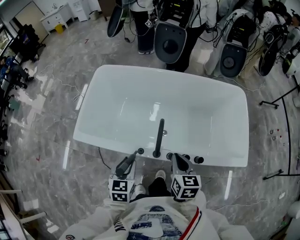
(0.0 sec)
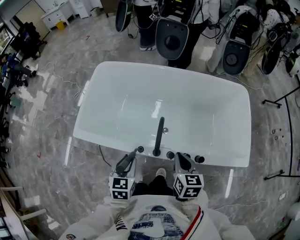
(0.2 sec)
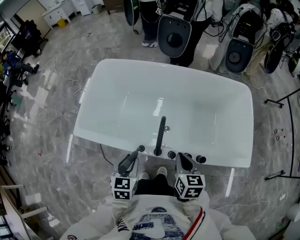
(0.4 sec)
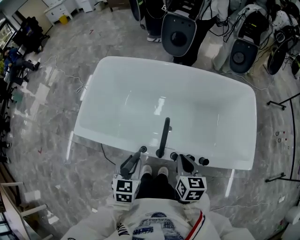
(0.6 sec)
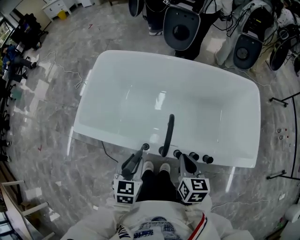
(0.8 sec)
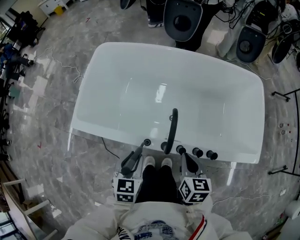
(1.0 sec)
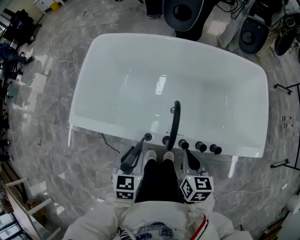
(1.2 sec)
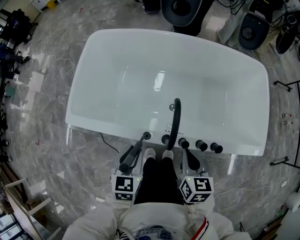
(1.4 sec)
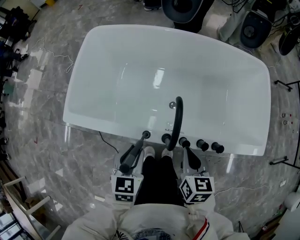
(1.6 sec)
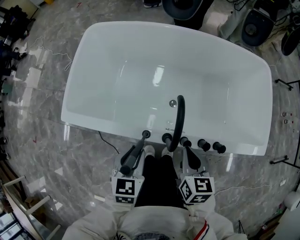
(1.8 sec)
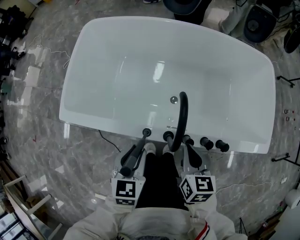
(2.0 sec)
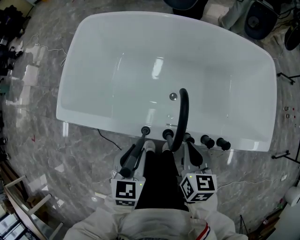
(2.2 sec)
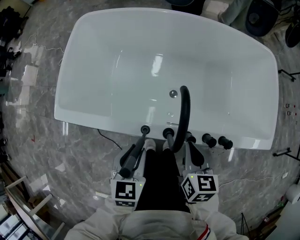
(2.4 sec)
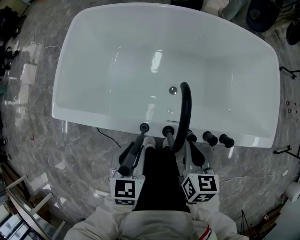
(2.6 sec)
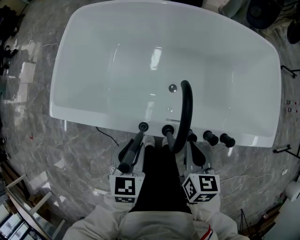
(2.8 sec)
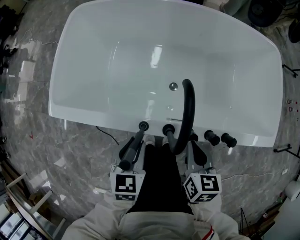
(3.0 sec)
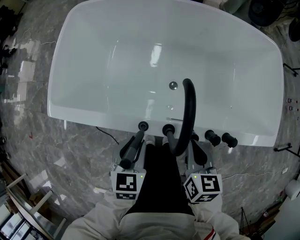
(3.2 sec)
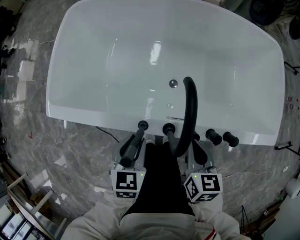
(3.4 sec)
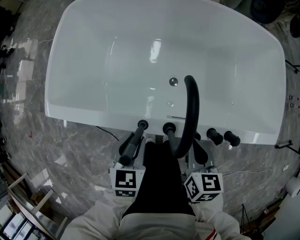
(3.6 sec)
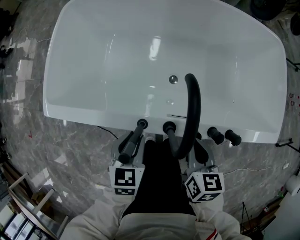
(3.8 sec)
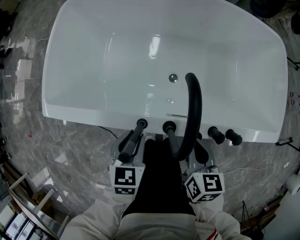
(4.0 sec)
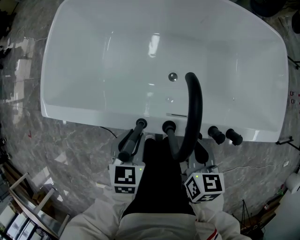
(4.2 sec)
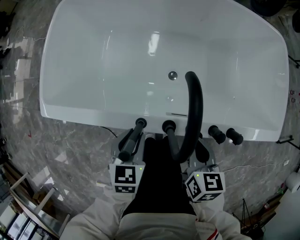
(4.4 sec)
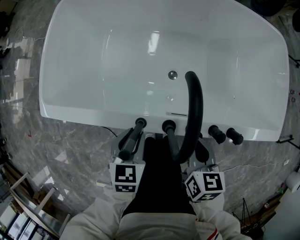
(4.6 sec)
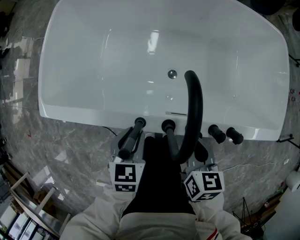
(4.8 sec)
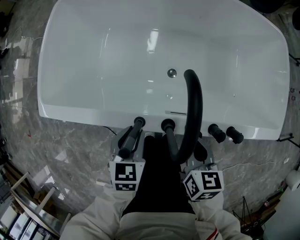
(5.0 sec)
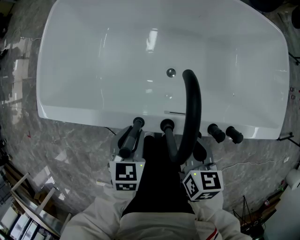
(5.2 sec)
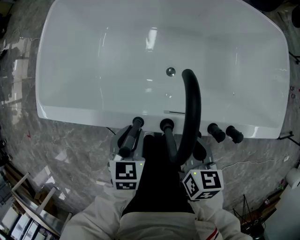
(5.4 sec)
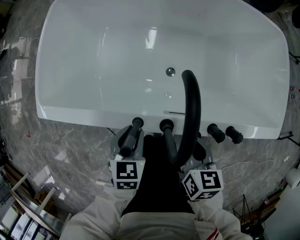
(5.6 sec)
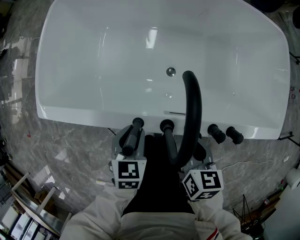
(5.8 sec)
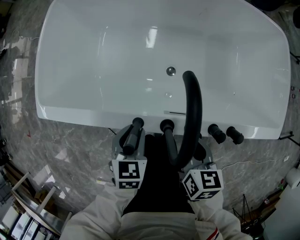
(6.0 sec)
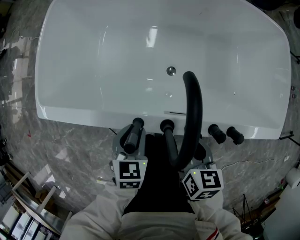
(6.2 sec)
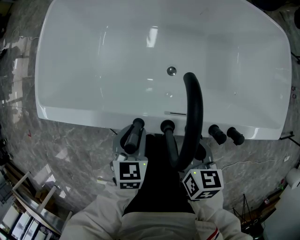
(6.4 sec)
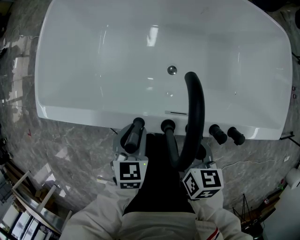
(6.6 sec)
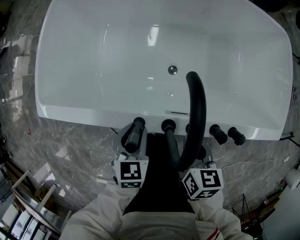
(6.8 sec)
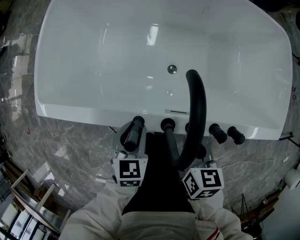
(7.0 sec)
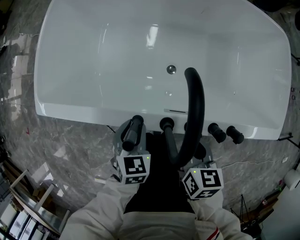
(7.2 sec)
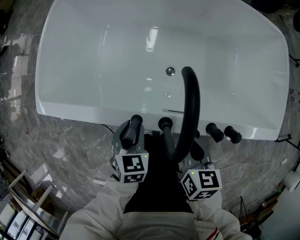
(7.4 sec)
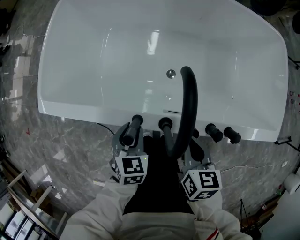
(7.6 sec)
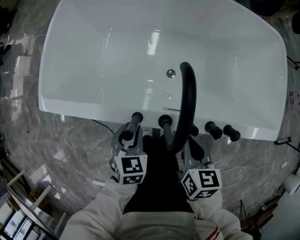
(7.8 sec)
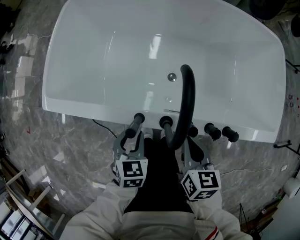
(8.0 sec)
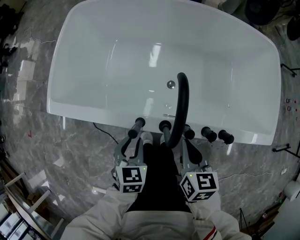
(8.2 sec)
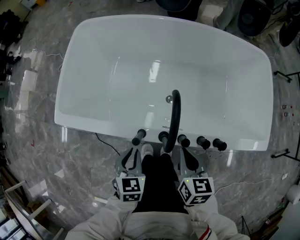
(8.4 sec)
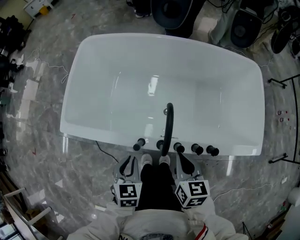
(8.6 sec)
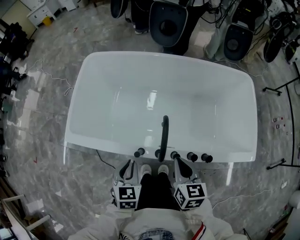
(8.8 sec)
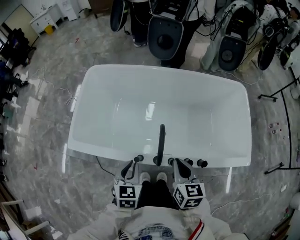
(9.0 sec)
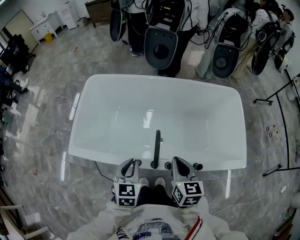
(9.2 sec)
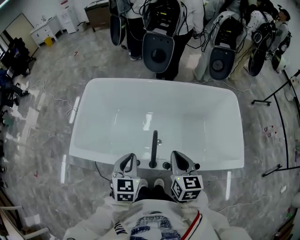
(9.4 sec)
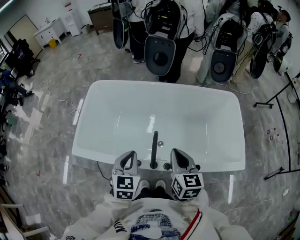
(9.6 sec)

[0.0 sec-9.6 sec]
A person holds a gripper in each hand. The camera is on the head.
0.0 sec to 1.6 sec: Both grippers move downward, about 10 cm.
1.6 sec to 3.2 sec: The two grippers go some 10 cm downward.
3.2 sec to 4.8 sec: The left gripper is displaced downward by approximately 5 cm.
4.8 sec to 8.0 sec: The grippers make only small movements.
8.0 sec to 9.6 sec: Both grippers travel together upward, about 30 cm. The right gripper turns by some 30 degrees. Meanwhile the left gripper rotates about 20 degrees, and closes its fingers.

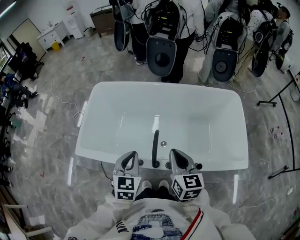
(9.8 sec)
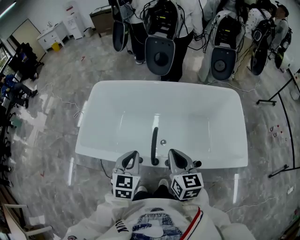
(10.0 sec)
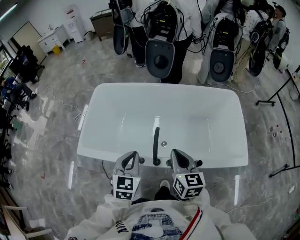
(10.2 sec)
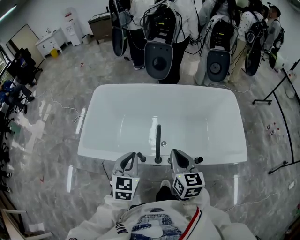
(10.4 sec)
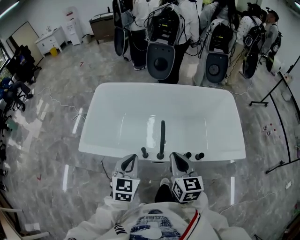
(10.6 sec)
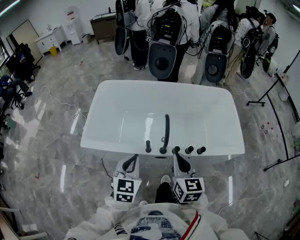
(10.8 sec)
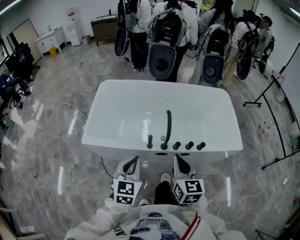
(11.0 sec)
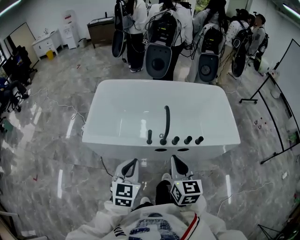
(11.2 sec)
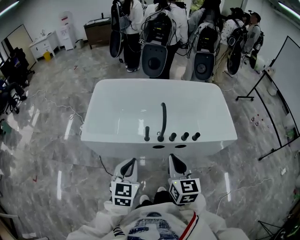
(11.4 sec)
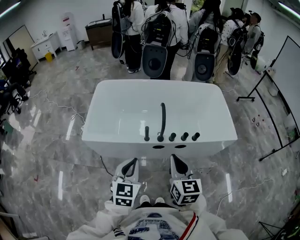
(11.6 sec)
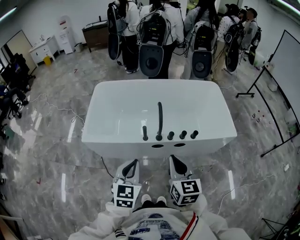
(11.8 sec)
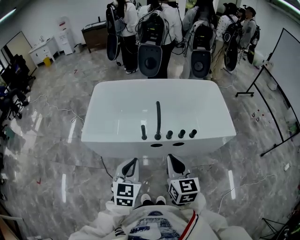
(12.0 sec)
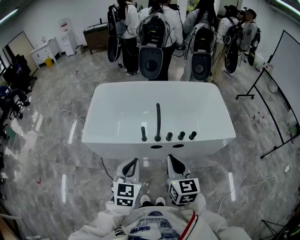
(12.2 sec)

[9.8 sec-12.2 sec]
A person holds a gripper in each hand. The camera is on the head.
9.8 sec to 11.0 sec: The grippers both shift backward and to the left by roughly 20 cm.
11.0 sec to 12.2 sec: The two grippers go approximately 10 cm backward.

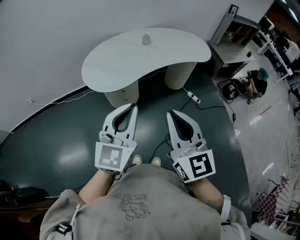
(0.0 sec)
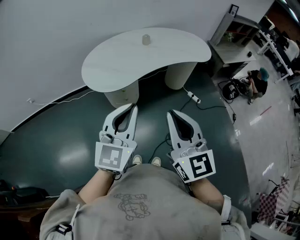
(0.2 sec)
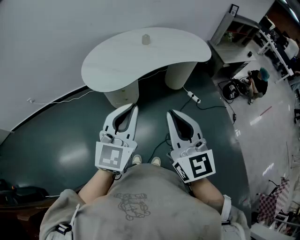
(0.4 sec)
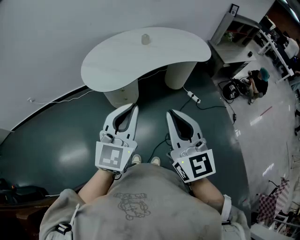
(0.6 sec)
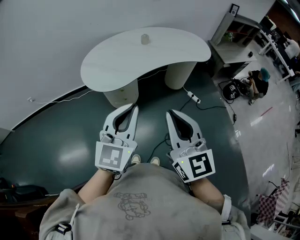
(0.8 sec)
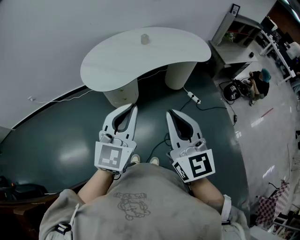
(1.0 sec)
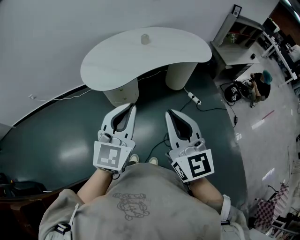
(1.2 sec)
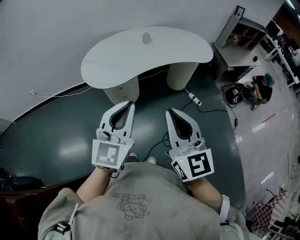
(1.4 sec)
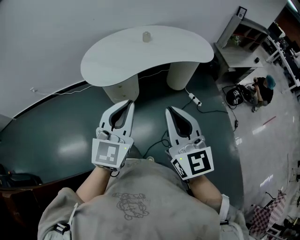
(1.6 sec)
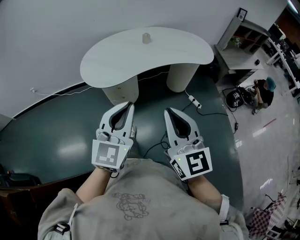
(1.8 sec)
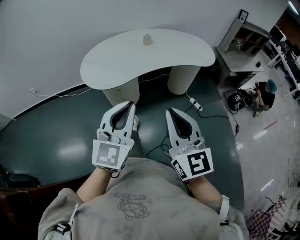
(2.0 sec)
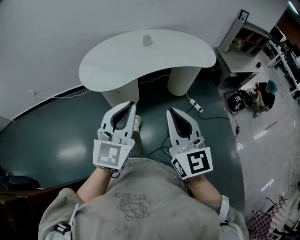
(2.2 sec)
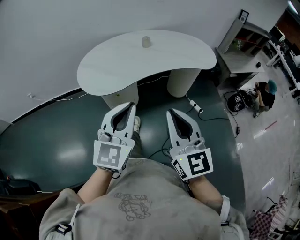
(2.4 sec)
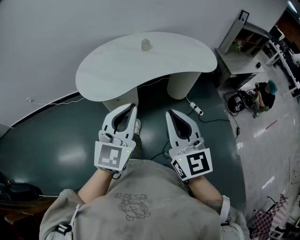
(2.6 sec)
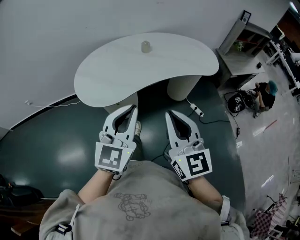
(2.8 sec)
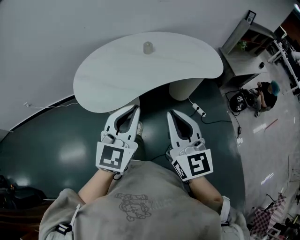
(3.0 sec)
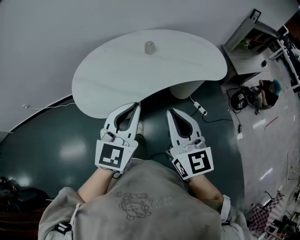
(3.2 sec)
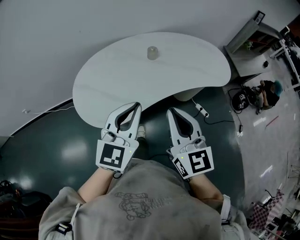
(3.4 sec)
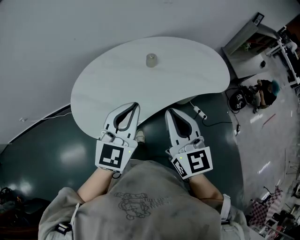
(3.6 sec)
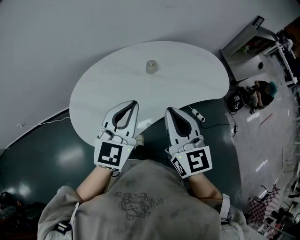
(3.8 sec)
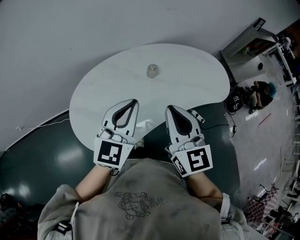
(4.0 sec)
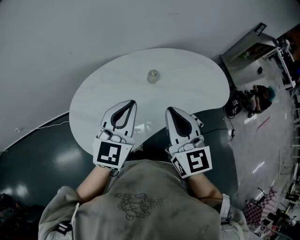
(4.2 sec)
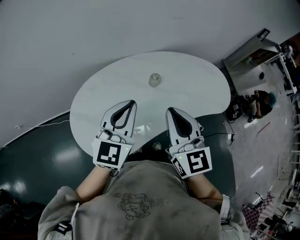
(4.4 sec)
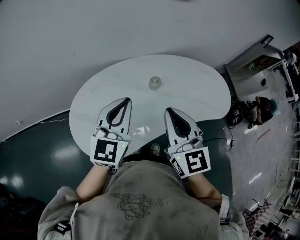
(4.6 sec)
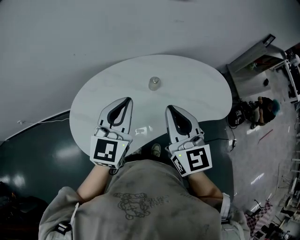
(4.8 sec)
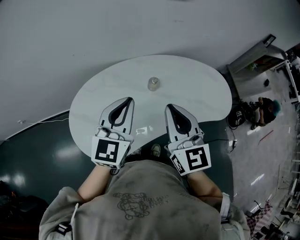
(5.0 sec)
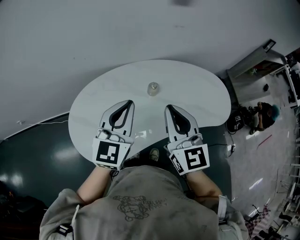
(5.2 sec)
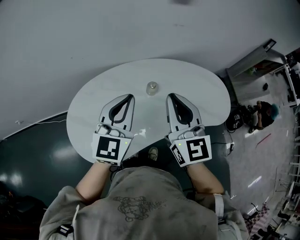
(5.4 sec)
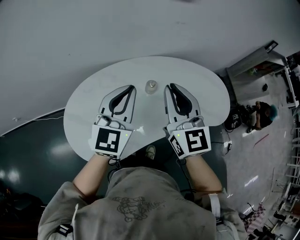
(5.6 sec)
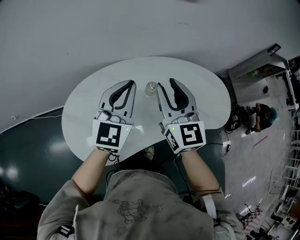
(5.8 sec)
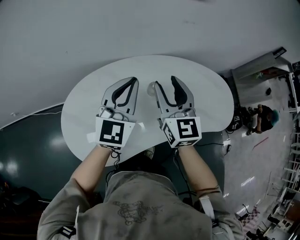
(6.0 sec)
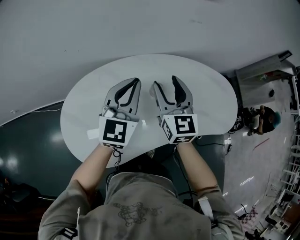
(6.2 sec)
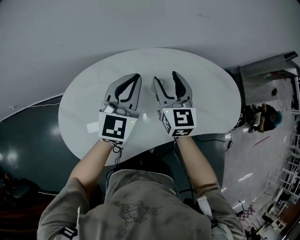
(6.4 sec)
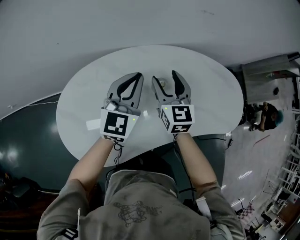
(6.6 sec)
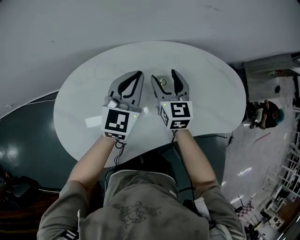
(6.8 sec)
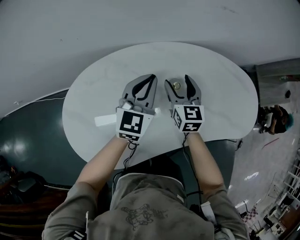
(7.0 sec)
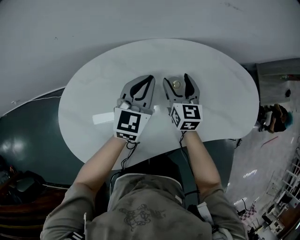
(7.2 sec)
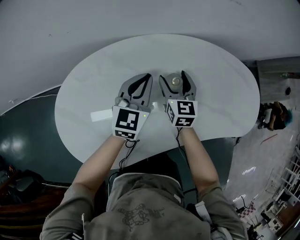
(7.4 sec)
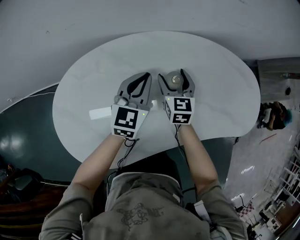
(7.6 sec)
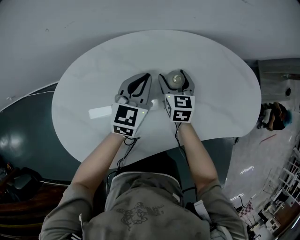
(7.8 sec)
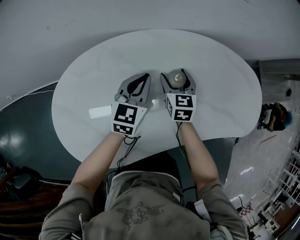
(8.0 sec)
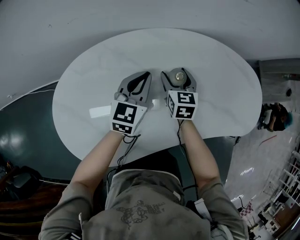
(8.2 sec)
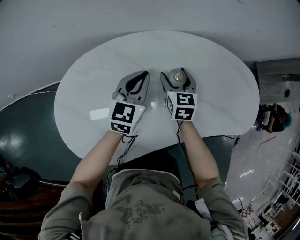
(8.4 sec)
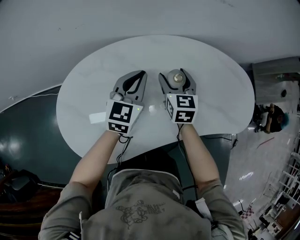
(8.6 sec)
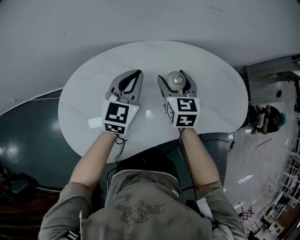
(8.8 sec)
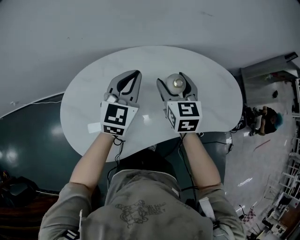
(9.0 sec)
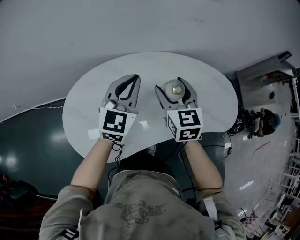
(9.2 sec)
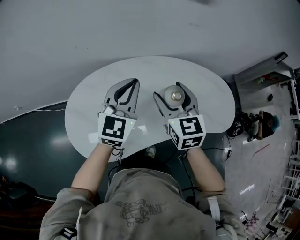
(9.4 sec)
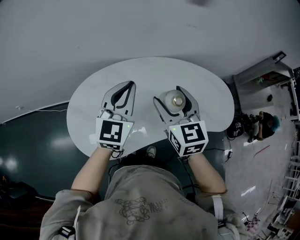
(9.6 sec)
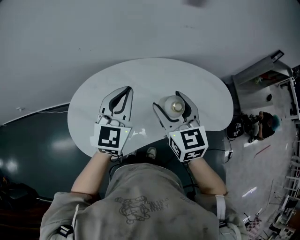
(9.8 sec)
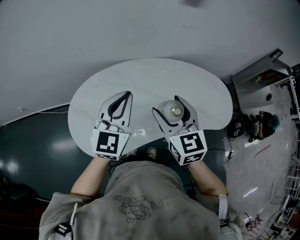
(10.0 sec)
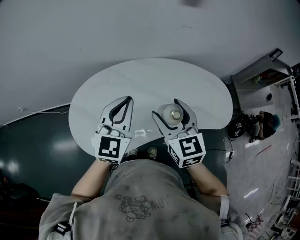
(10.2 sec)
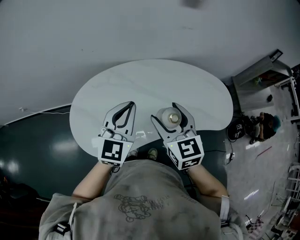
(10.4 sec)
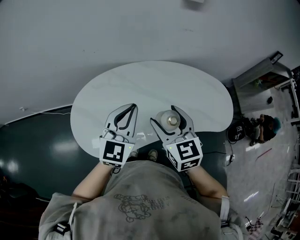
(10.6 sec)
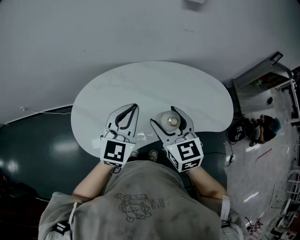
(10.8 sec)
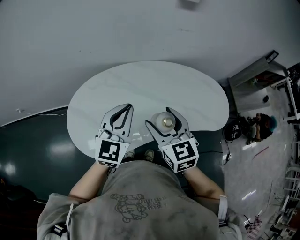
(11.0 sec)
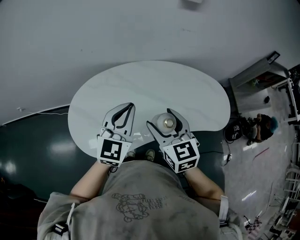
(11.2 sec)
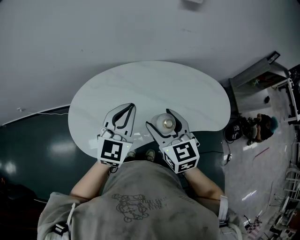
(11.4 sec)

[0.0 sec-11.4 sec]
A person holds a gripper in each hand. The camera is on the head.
0.0 sec to 1.4 sec: The grippers both shift to the right by approximately 5 cm.
1.4 sec to 2.8 sec: Both grippers travel together forward, approximately 15 cm.
2.8 sec to 4.2 sec: Both grippers travel together forward, some 35 cm.
4.2 sec to 5.6 sec: Both grippers travel together forward, about 10 cm.
5.6 sec to 7.2 sec: Both grippers travel together downward and forward, some 30 cm. The right gripper turns by approximately 20 degrees, and opens.
7.2 sec to 8.6 sec: The right gripper goes downward and returns, about 5 cm each way.
8.6 sec to 10.0 sec: The grippers both shift upward and backward by about 25 cm.
10.0 sec to 11.4 sec: The right gripper shifts by some 5 cm.
